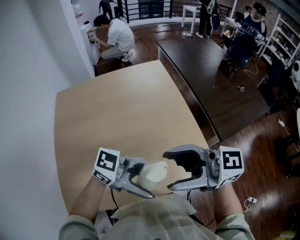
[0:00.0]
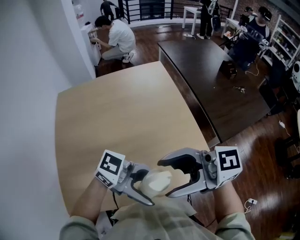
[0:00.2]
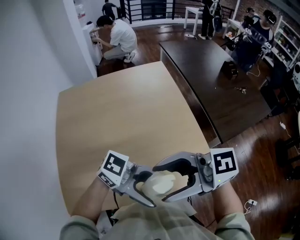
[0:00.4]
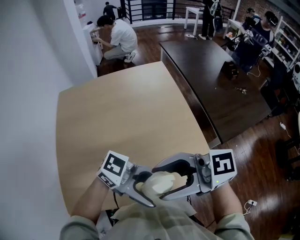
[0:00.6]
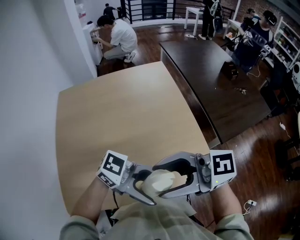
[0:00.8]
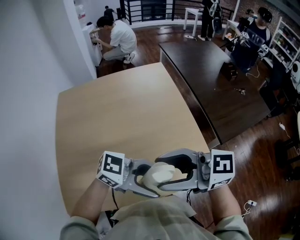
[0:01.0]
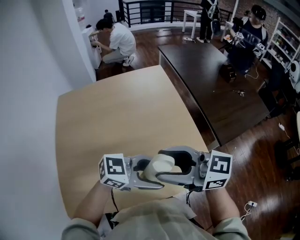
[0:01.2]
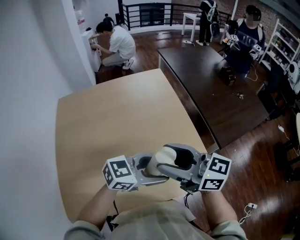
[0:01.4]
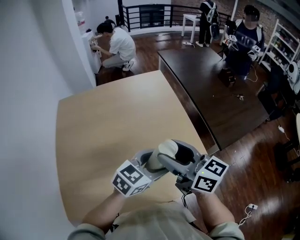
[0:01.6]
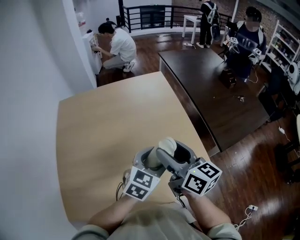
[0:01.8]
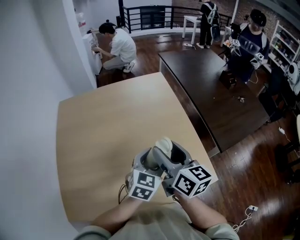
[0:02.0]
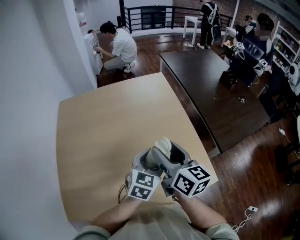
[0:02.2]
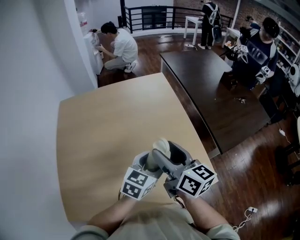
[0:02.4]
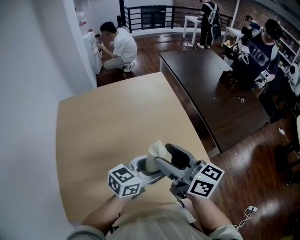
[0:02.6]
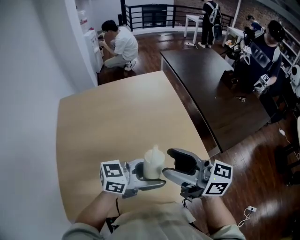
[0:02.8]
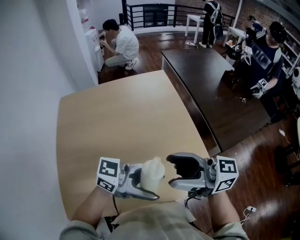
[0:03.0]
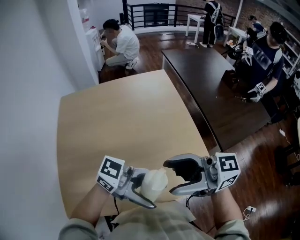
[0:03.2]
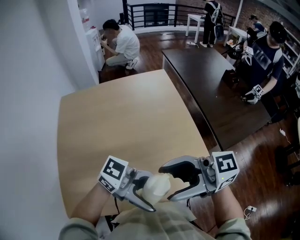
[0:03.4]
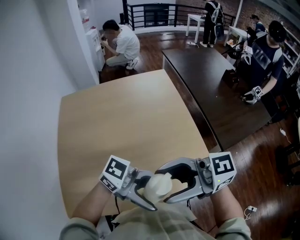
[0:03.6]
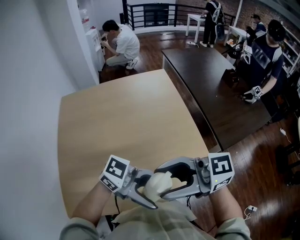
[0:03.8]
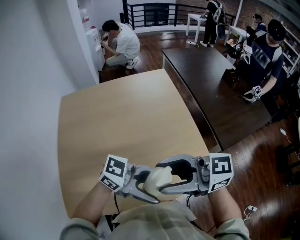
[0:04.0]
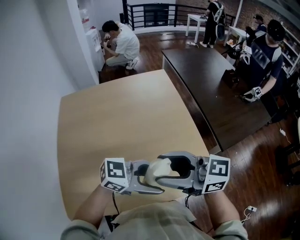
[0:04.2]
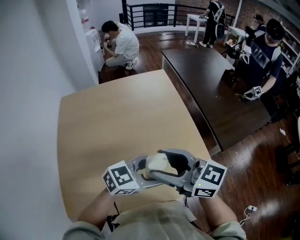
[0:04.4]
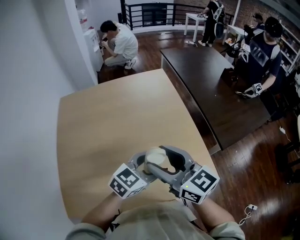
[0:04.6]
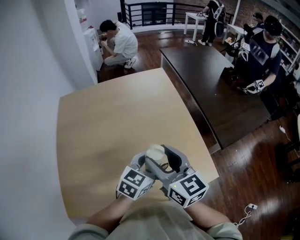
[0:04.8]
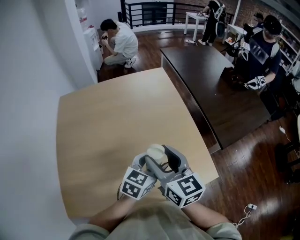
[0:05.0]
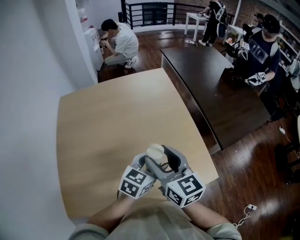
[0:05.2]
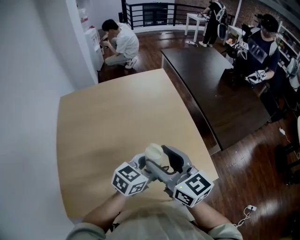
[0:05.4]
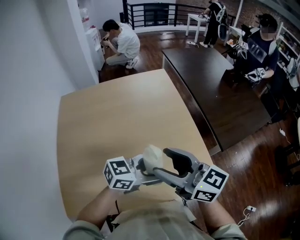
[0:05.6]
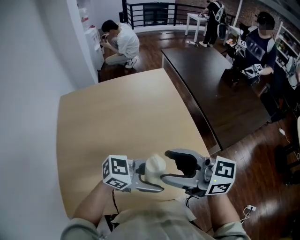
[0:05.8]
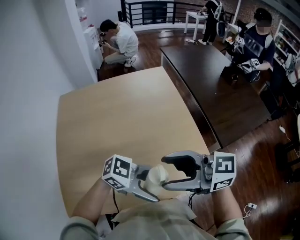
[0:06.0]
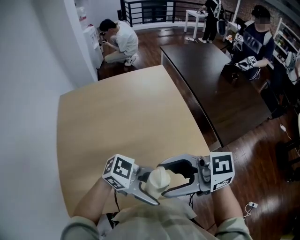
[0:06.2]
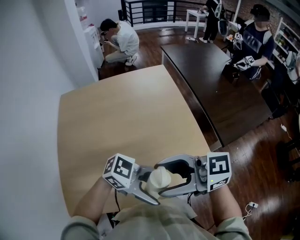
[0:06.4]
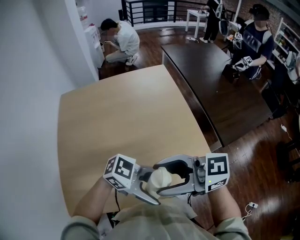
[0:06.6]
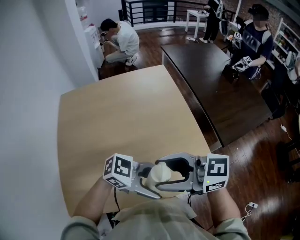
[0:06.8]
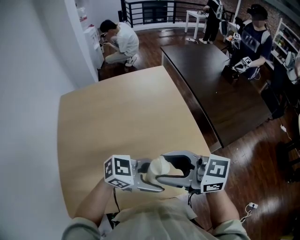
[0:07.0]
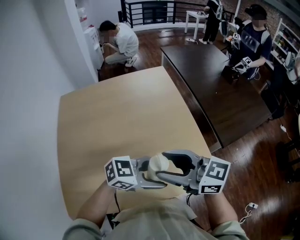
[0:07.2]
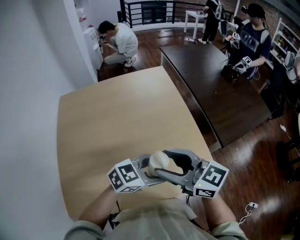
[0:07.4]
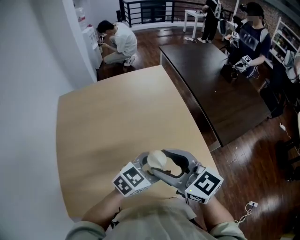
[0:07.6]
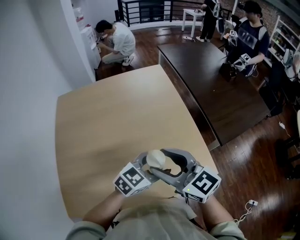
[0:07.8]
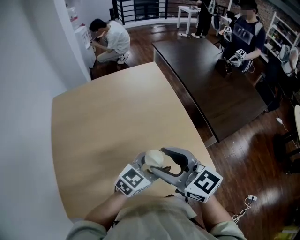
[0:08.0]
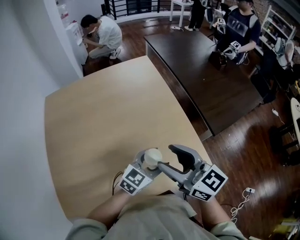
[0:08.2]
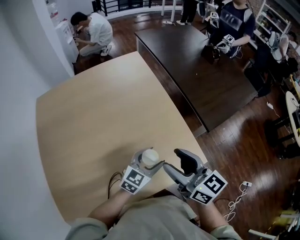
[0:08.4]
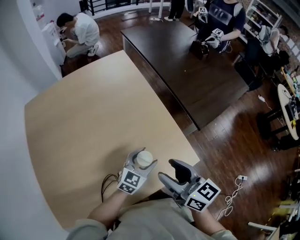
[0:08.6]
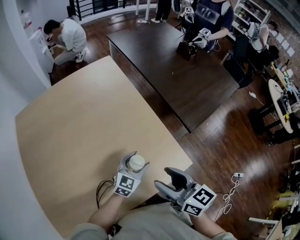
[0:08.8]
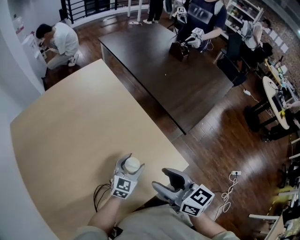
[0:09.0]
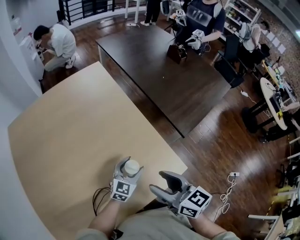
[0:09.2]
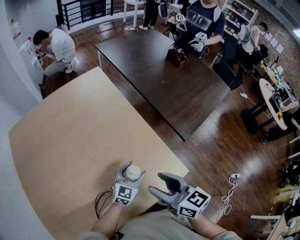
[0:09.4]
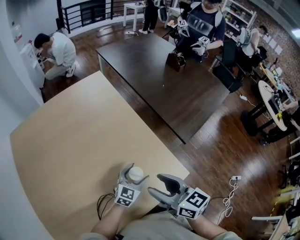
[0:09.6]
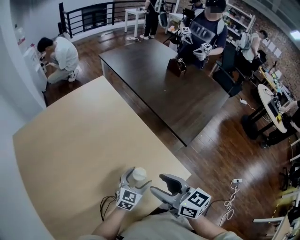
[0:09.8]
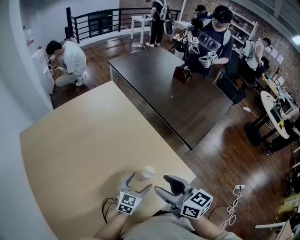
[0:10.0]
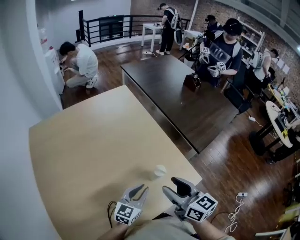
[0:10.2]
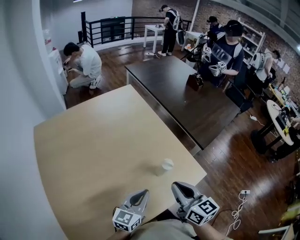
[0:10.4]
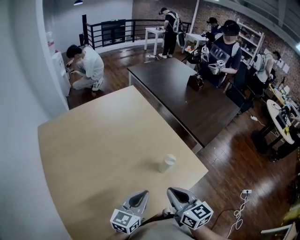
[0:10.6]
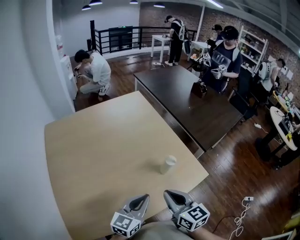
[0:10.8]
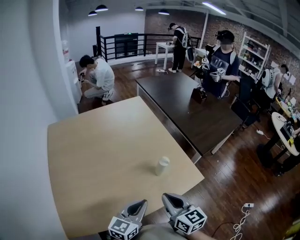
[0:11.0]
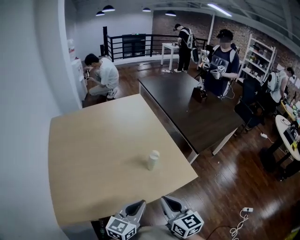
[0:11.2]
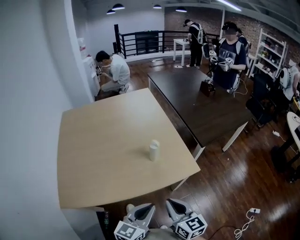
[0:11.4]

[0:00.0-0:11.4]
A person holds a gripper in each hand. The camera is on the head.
0:00.0 to 0:01.4: The left gripper changes place by roughly 10 cm, and rotates approximately 30 degrees; the right gripper shifts by approximately 10 cm, and rotates roughly 20 degrees.
0:04.2 to 0:05.6: The right gripper turns by about 20 degrees. The left gripper moves roughly 10 cm downward and comes back.
0:07.2 to 0:08.6: The right gripper ends up roughly 15 cm from where it was, and rotates approximately 40 degrees, while the left gripper goes about 15 cm downward, and swivels about 40 degrees.
0:10.0 to 0:11.4: The left gripper is displaced backward and upward by some 30 cm, swivels approximately 20 degrees, and closes; the right gripper is displaced backward by about 20 cm, and closes.

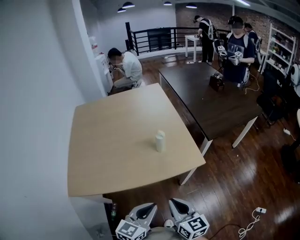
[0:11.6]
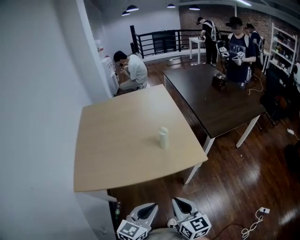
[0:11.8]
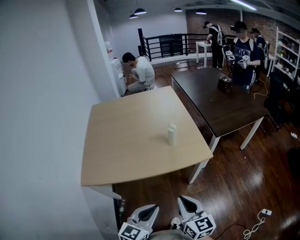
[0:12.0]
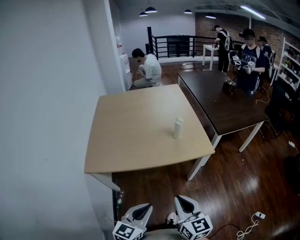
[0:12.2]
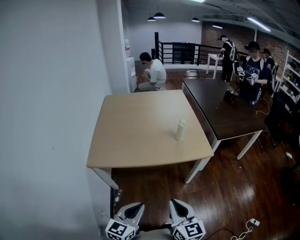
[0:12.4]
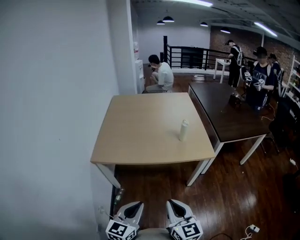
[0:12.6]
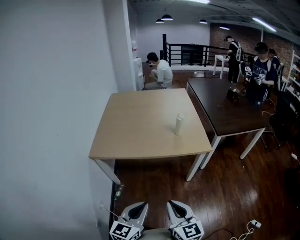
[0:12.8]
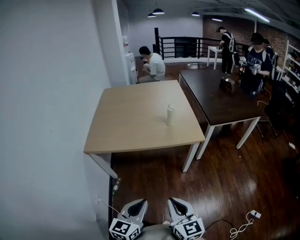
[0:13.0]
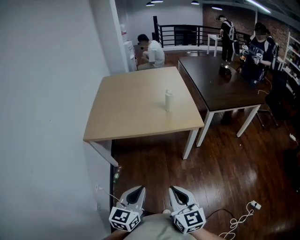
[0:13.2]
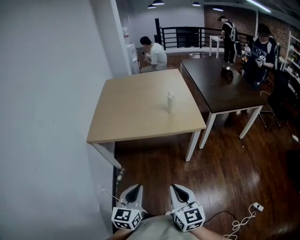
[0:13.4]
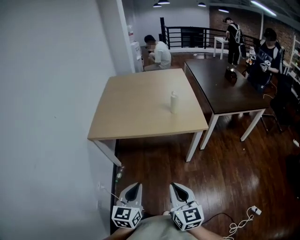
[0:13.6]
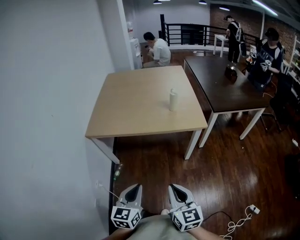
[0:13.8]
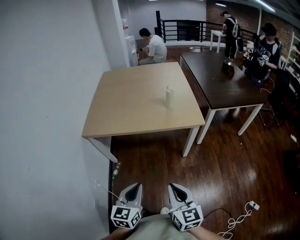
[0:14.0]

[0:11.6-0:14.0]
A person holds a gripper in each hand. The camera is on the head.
0:11.6 to 0:12.8: The grippers both shift backward by roughly 20 cm. The left gripper changes its angle by some 20 degrees.
0:12.8 to 0:14.0: The right gripper goes approximately 5 cm to the right.

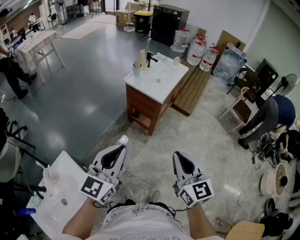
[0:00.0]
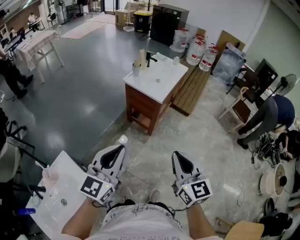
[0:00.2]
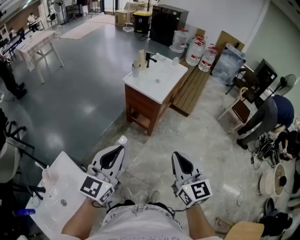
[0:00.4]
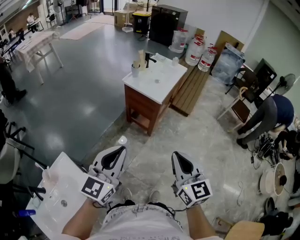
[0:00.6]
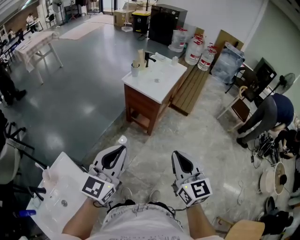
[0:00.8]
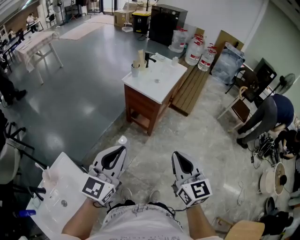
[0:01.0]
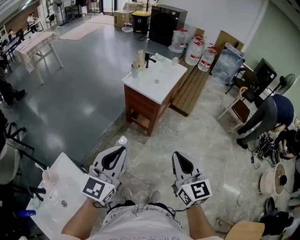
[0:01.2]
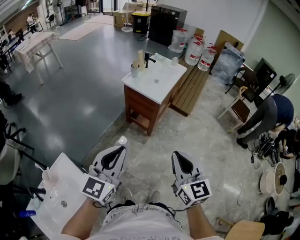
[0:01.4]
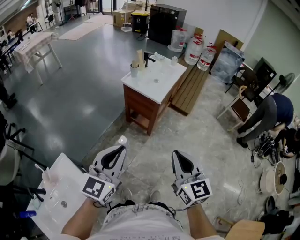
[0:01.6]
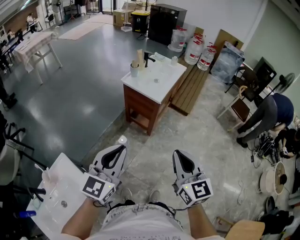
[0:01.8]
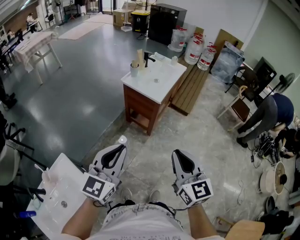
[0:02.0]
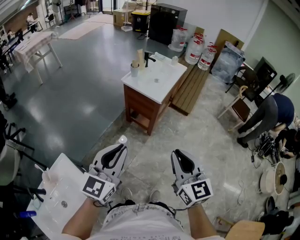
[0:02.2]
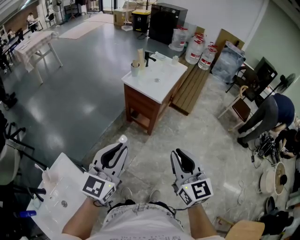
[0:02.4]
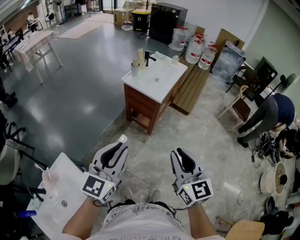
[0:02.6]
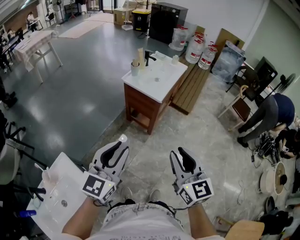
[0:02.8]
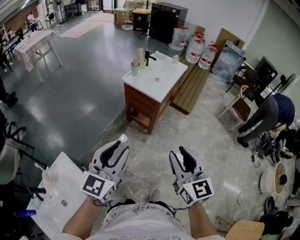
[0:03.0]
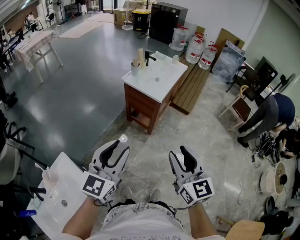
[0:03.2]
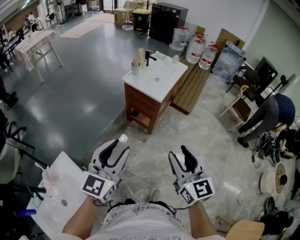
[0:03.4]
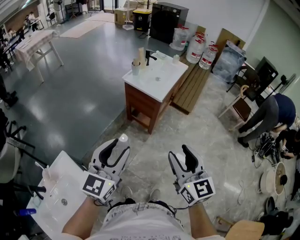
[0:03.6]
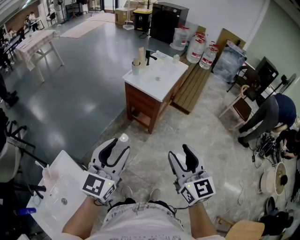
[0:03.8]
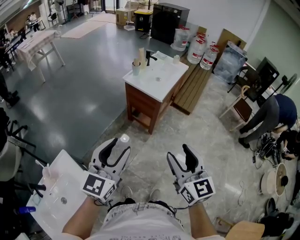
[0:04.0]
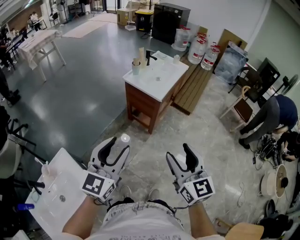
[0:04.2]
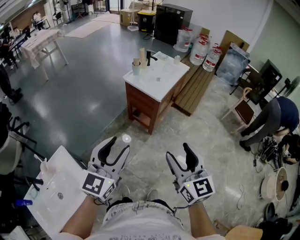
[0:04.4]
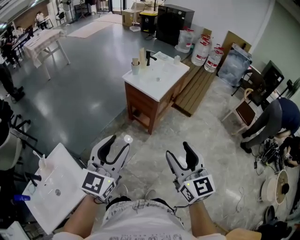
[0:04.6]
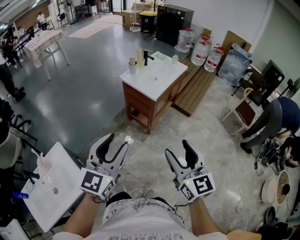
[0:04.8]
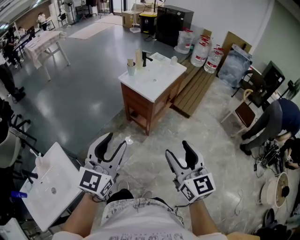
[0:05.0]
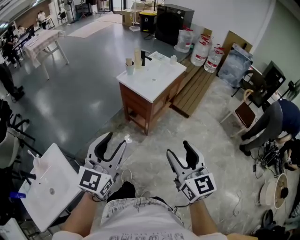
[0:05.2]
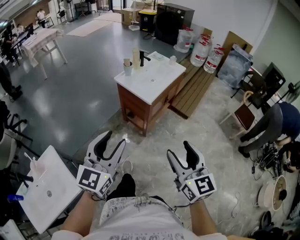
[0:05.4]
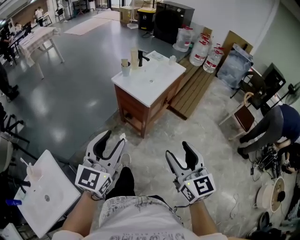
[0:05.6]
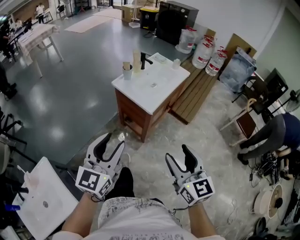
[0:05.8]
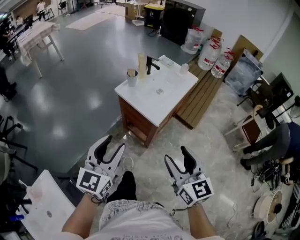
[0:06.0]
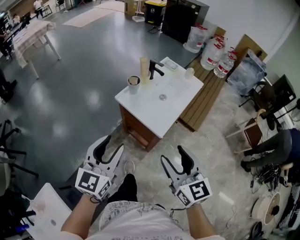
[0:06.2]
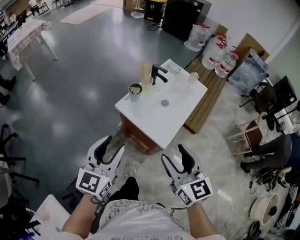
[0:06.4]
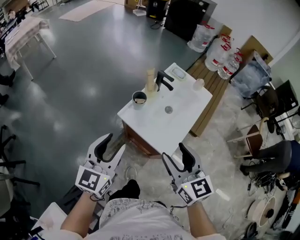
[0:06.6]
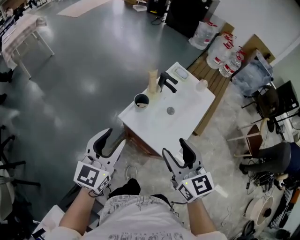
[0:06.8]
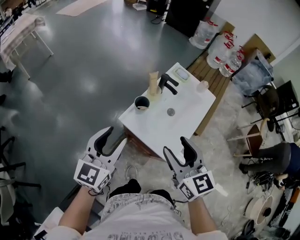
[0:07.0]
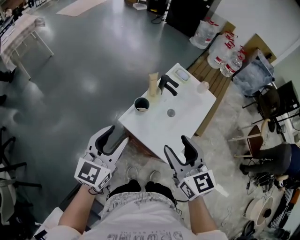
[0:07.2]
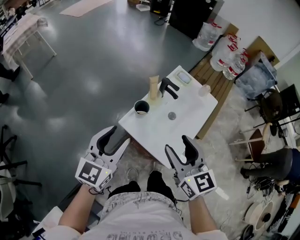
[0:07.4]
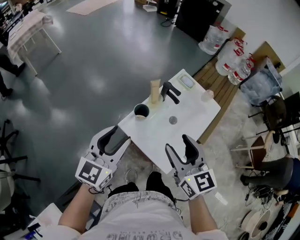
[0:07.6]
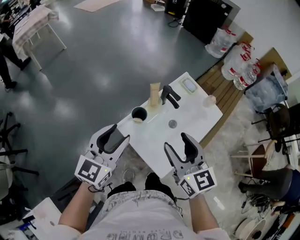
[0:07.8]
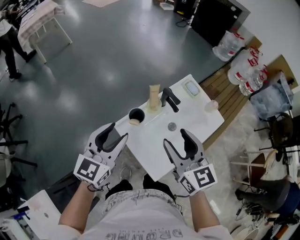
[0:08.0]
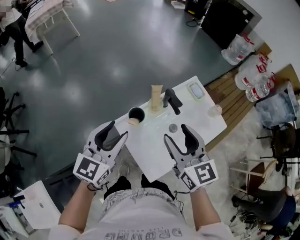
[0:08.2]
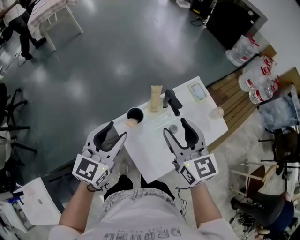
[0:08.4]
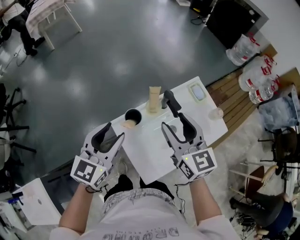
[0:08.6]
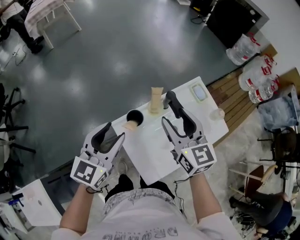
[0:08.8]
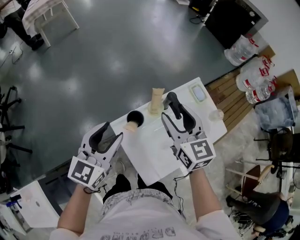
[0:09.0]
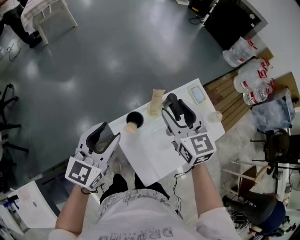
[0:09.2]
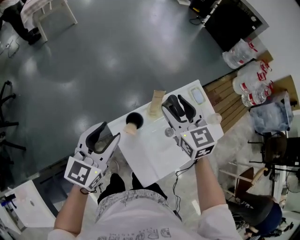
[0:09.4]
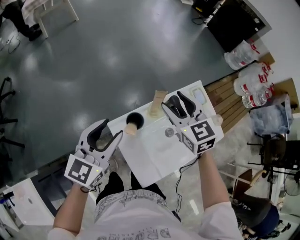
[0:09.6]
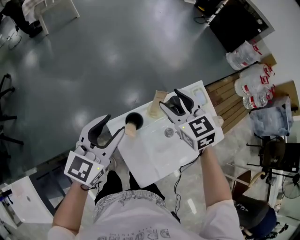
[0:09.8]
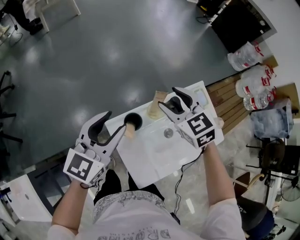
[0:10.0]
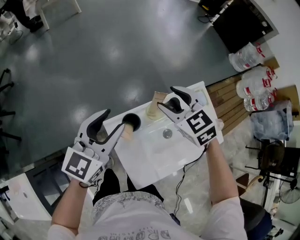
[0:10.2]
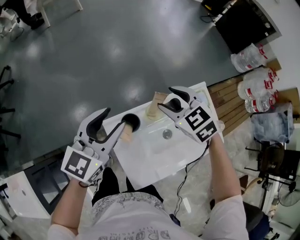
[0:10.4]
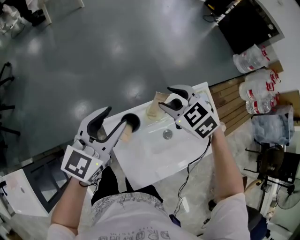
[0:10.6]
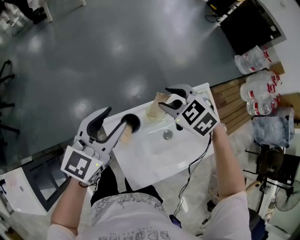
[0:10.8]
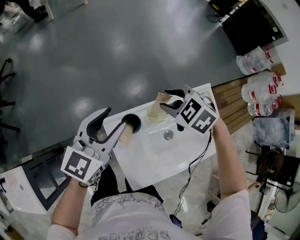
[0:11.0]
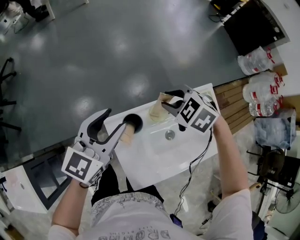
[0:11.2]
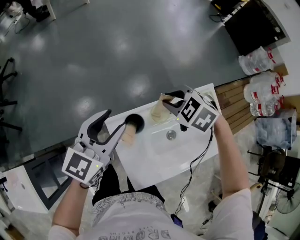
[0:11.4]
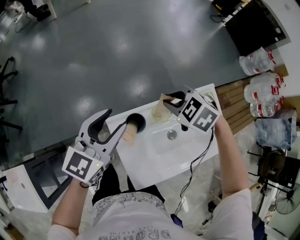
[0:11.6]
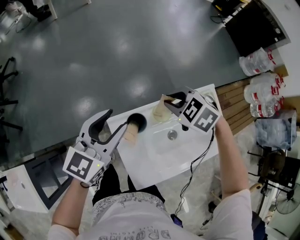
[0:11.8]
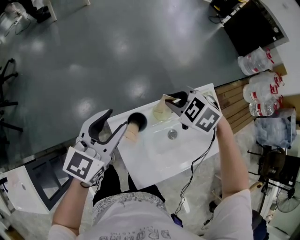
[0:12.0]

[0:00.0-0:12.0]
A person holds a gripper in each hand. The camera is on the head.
0:00.0 to 0:01.6: Both grippers stay put.
0:01.6 to 0:03.0: The left gripper opens up; the right gripper opens.
0:03.0 to 0:04.4: The right gripper opens up.
0:04.4 to 0:06.0: Both grippers move forward, approximately 25 cm.
0:06.0 to 0:07.6: Both grippers travel together forward, some 35 cm.
0:07.6 to 0:09.0: The right gripper goes about 20 cm forward, while the left gripper goes some 5 cm forward.
0:09.0 to 0:10.4: The left gripper shifts roughly 5 cm forward. Meanwhile the right gripper moves forward and downward, some 10 cm, and rotates roughly 40 degrees.
0:10.4 to 0:12.0: The right gripper changes its angle by some 20 degrees, and closes.
